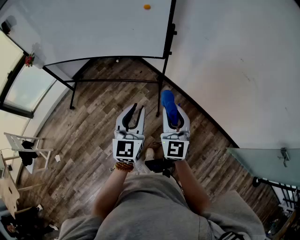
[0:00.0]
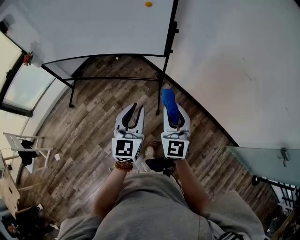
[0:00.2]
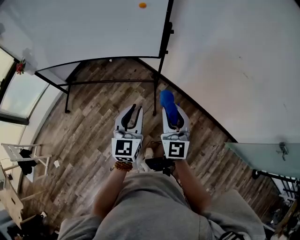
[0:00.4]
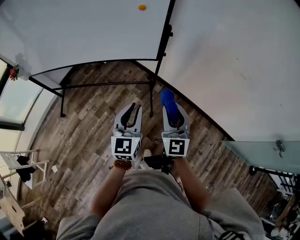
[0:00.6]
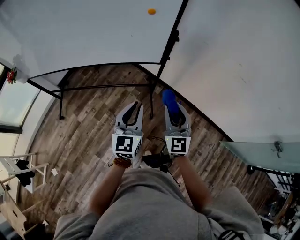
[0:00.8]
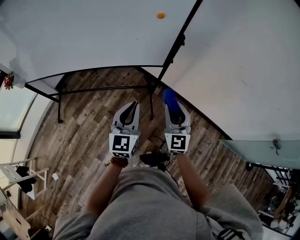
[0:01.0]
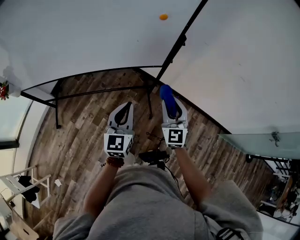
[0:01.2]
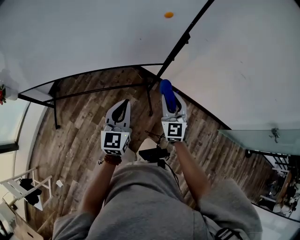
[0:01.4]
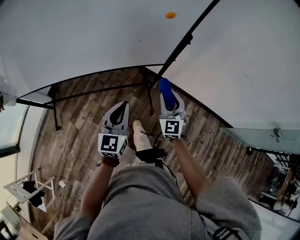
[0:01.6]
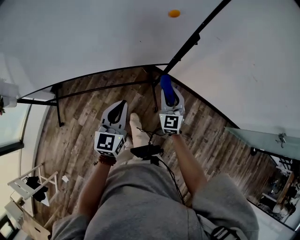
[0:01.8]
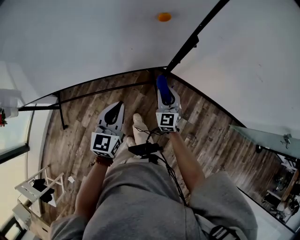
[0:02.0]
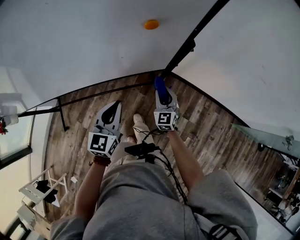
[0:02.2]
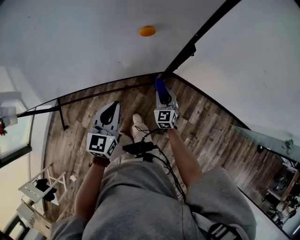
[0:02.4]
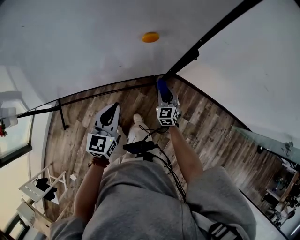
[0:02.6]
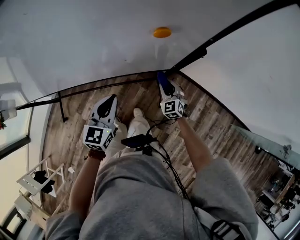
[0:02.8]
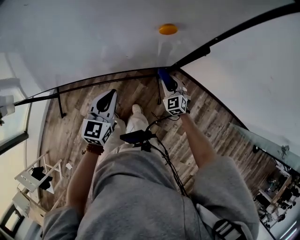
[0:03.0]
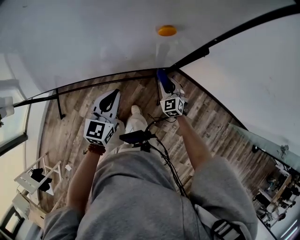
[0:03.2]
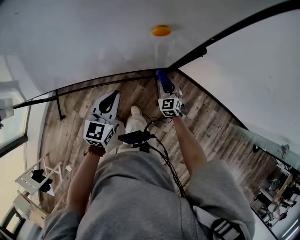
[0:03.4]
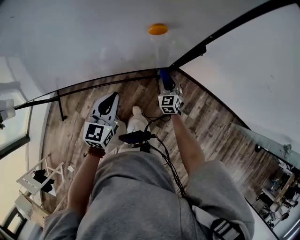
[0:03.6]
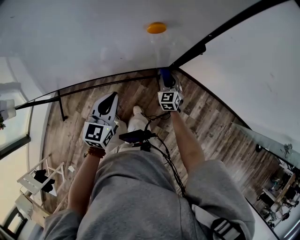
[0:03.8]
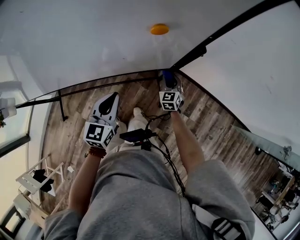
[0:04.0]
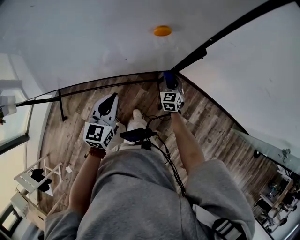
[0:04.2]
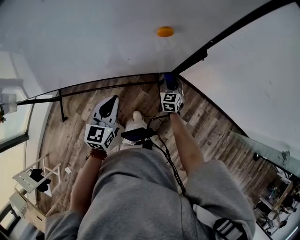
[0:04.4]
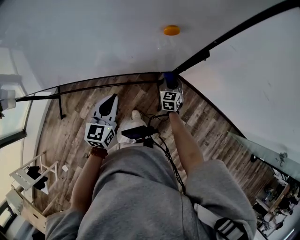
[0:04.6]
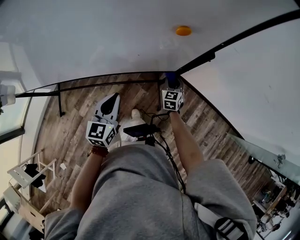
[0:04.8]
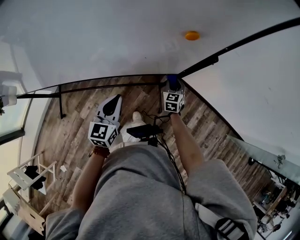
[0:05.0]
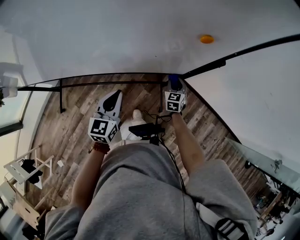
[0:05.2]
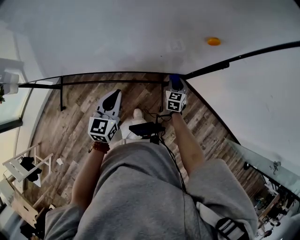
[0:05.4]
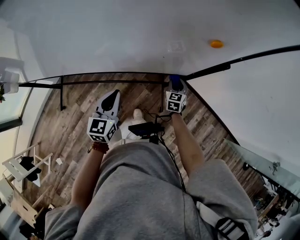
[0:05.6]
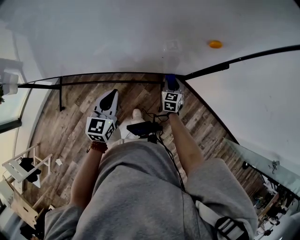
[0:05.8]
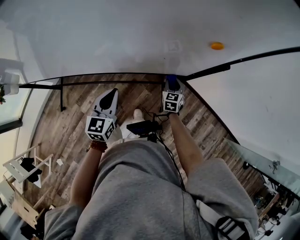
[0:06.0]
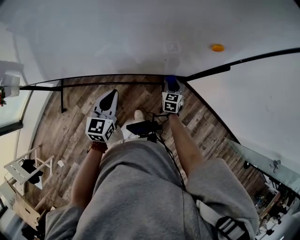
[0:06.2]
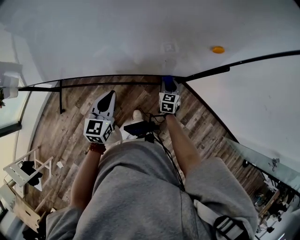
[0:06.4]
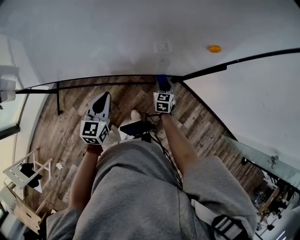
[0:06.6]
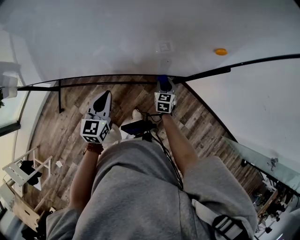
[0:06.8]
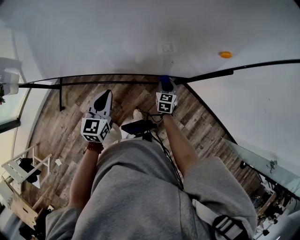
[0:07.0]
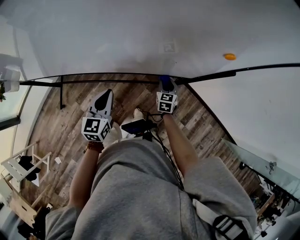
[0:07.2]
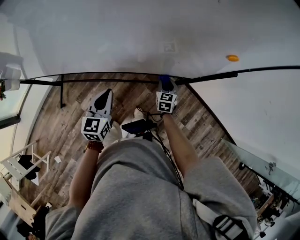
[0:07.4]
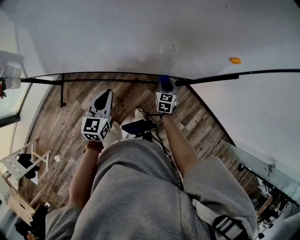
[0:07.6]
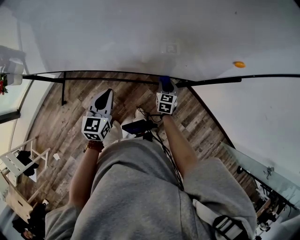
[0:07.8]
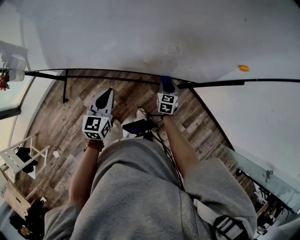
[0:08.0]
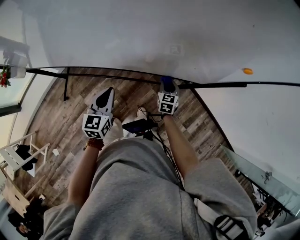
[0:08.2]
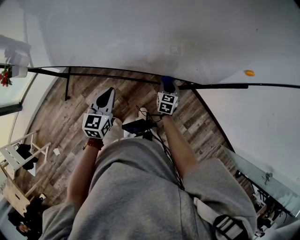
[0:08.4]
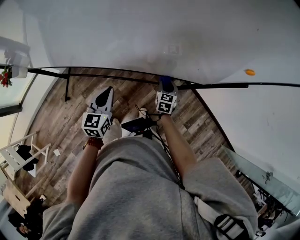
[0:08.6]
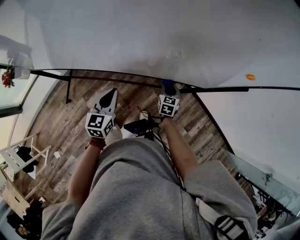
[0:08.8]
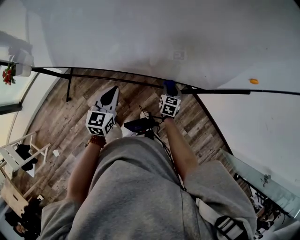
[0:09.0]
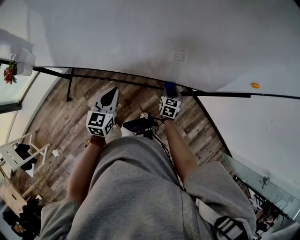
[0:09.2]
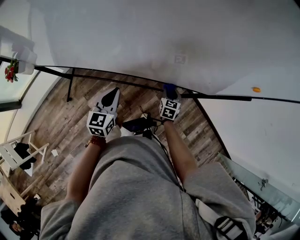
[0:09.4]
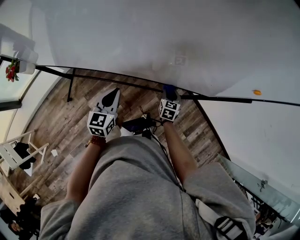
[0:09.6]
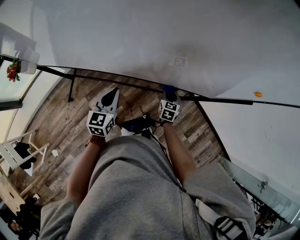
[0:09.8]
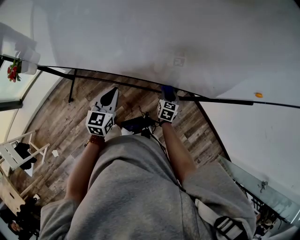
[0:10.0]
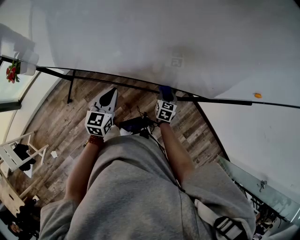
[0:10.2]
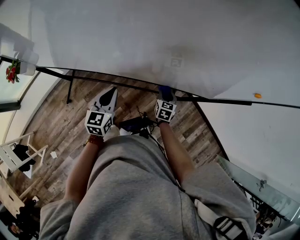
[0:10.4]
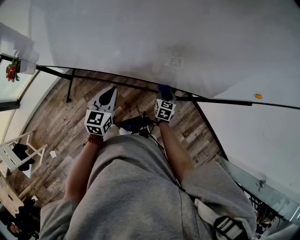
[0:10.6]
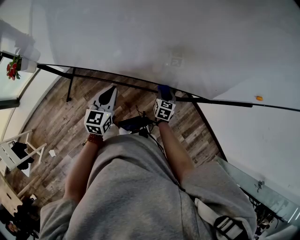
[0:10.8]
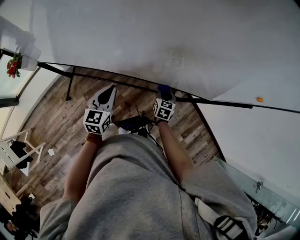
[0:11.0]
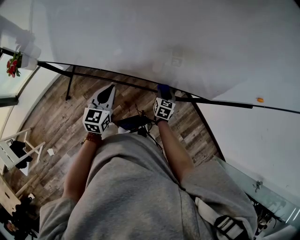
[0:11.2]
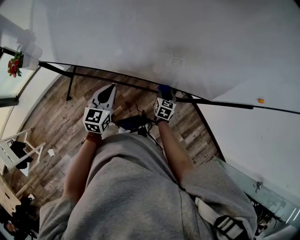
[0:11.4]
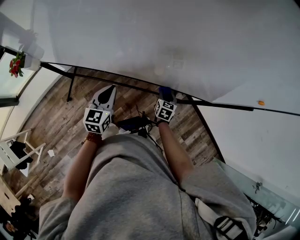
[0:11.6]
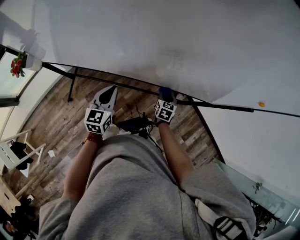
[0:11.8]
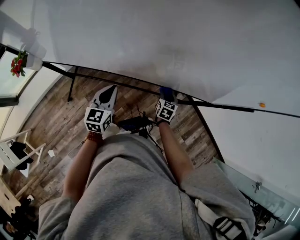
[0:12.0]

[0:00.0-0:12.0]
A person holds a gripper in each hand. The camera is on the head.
0:00.0 to 0:01.6: The right gripper goes some 30 cm forward, to the left and downward; the left gripper shifts approximately 30 cm forward and to the left.
0:01.6 to 0:03.0: The left gripper heads forward and downward, covering approximately 20 cm, while the right gripper goes about 30 cm downward and forward, and swivels some 30 degrees.
0:03.0 to 0:04.4: The right gripper swivels roughly 30 degrees.
0:04.4 to 0:06.0: The two grippers go approximately 10 cm to the left.
0:06.0 to 0:07.6: The two grippers go roughly 10 cm to the left.
0:07.6 to 0:09.0: Both grippers move to the left, some 5 cm.
0:09.0 to 0:10.4: Both grippers travel together to the left, roughly 5 cm.
0:10.4 to 0:12.0: The grippers both shift to the left by roughly 5 cm.

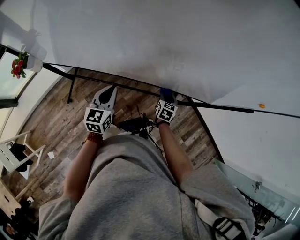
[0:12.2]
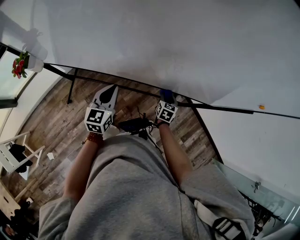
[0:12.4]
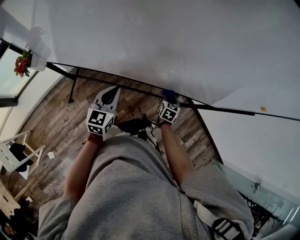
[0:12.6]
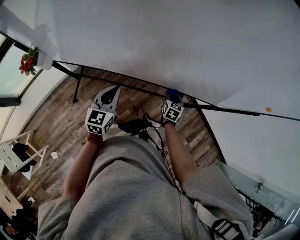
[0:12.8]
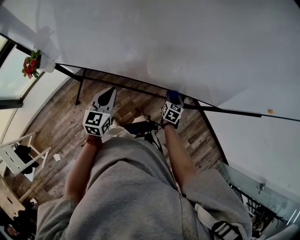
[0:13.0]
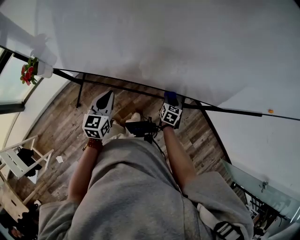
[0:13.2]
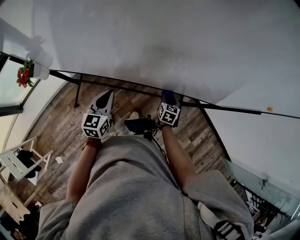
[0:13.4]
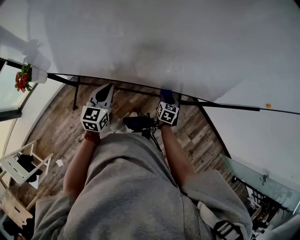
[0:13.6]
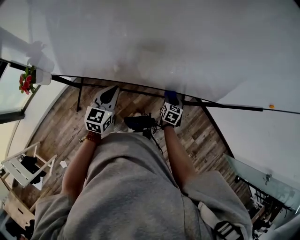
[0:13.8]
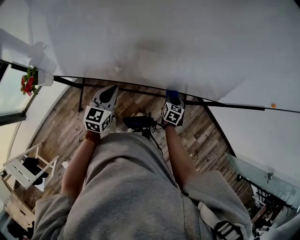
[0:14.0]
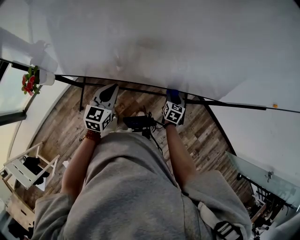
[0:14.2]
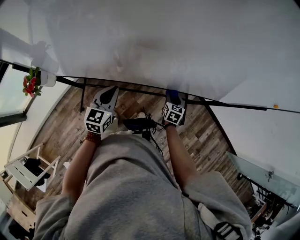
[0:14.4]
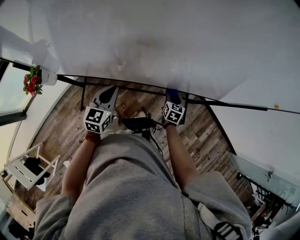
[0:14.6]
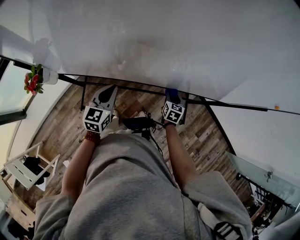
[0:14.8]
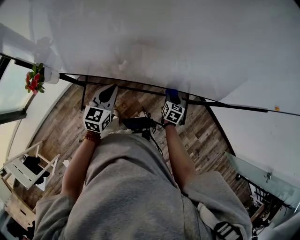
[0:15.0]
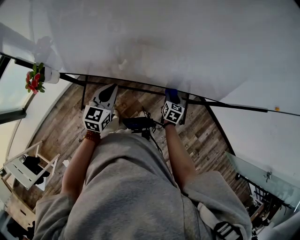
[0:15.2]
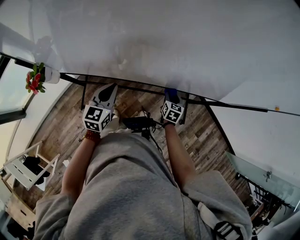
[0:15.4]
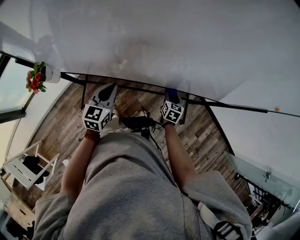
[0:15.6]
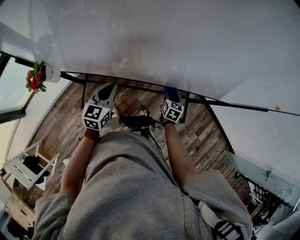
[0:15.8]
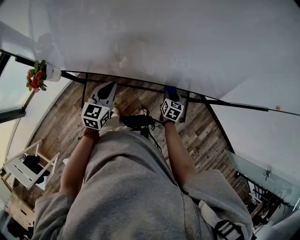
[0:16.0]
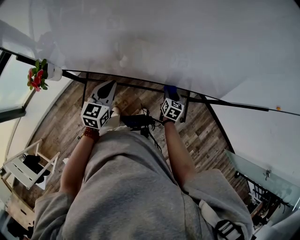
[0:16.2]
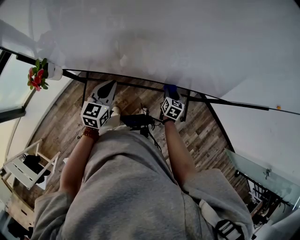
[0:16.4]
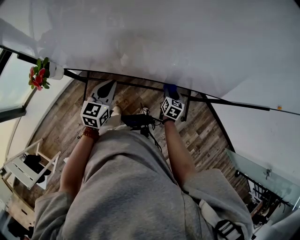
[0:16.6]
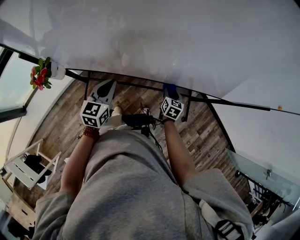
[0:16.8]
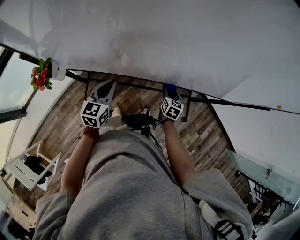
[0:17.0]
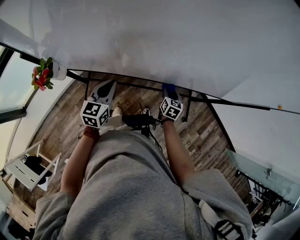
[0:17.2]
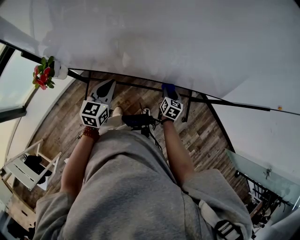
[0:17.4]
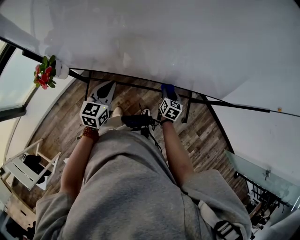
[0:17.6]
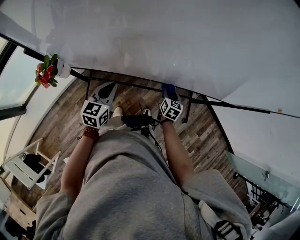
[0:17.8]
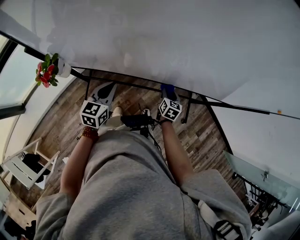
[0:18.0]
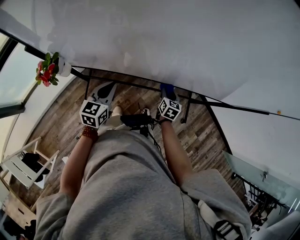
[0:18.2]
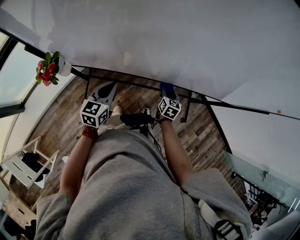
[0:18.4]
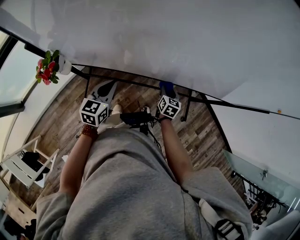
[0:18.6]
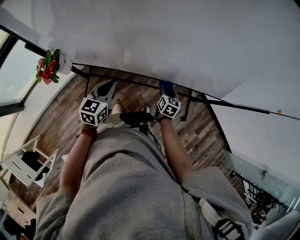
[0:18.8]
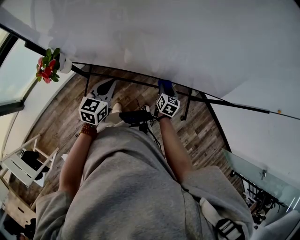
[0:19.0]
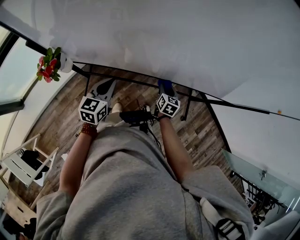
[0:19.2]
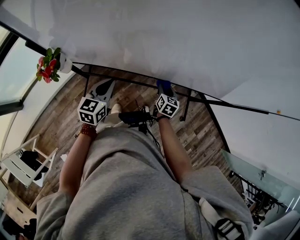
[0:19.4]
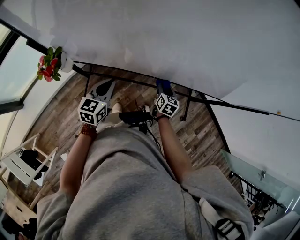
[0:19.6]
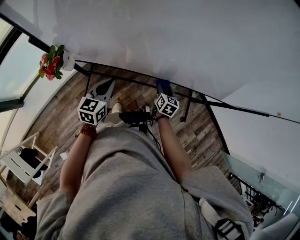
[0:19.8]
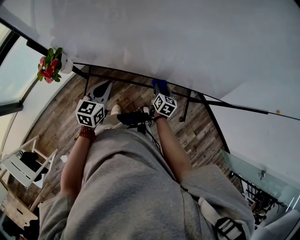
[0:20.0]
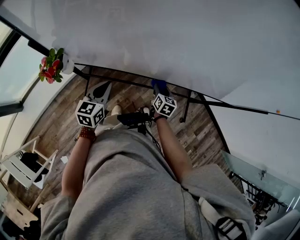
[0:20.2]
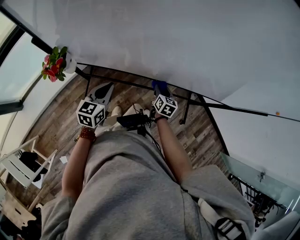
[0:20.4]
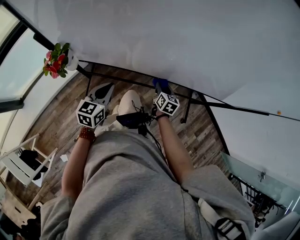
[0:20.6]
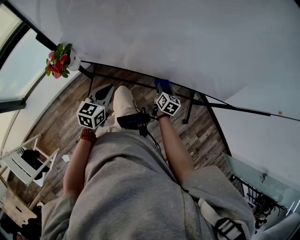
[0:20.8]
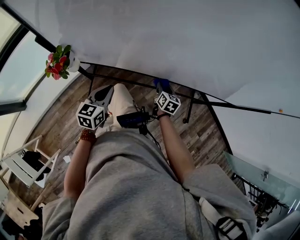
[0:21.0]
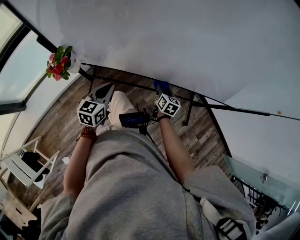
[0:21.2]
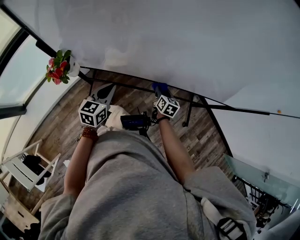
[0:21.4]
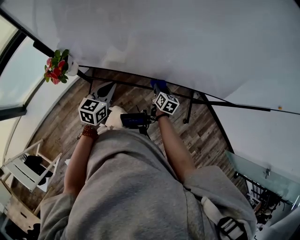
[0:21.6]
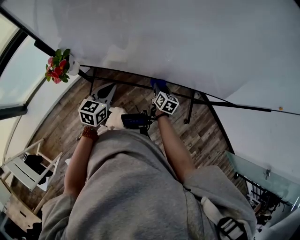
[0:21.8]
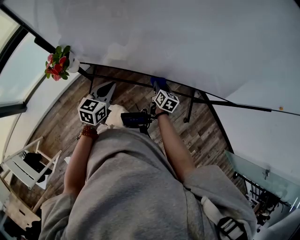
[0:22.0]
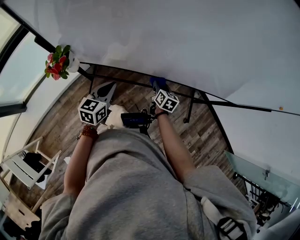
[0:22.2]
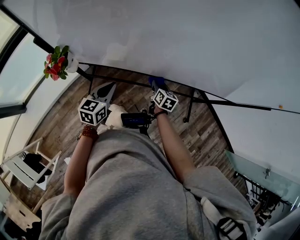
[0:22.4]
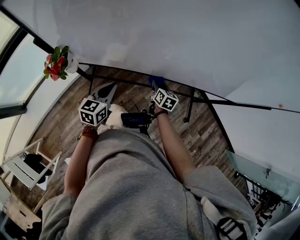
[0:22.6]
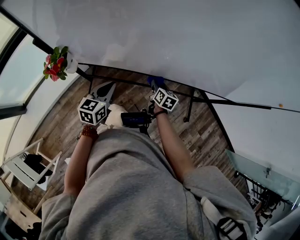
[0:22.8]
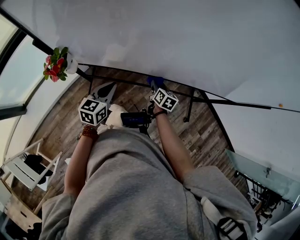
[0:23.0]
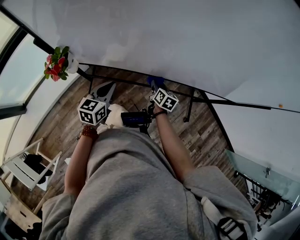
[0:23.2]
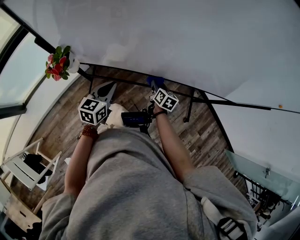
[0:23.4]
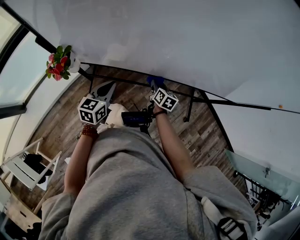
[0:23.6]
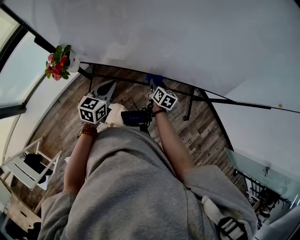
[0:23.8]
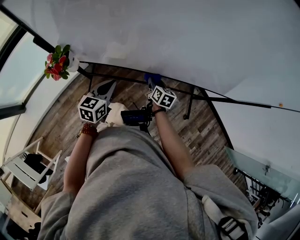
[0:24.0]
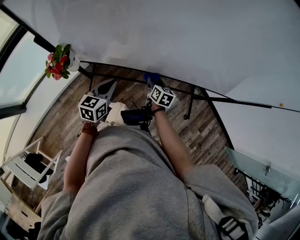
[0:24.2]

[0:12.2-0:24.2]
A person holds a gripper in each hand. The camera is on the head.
0:12.2 to 0:13.8: The grippers both shift to the left by about 10 cm.
0:13.8 to 0:15.2: Both grippers travel together to the left, roughly 5 cm.
0:15.2 to 0:16.6: The grippers make only small movements.
0:16.6 to 0:18.2: The right gripper goes about 5 cm to the left.
0:18.2 to 0:19.8: The grippers move only a little.
0:19.8 to 0:22.6: The grippers move only a little.
0:22.6 to 0:24.2: The grippers stay close to where they were, moving slightly.
